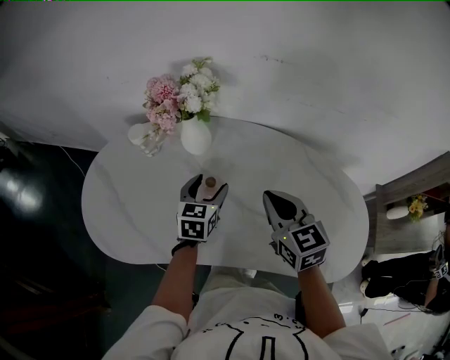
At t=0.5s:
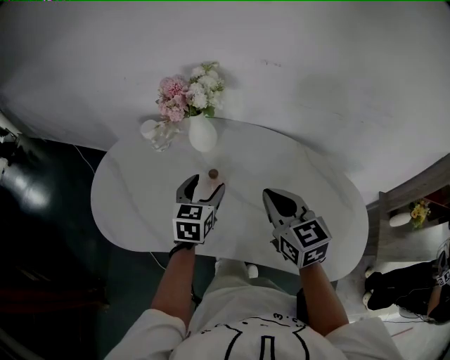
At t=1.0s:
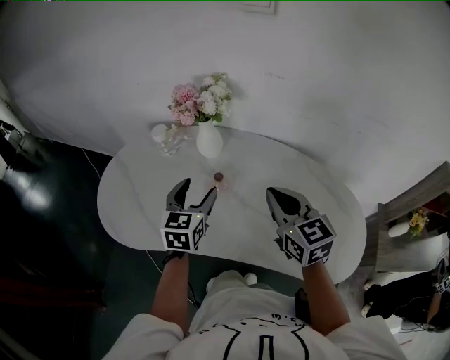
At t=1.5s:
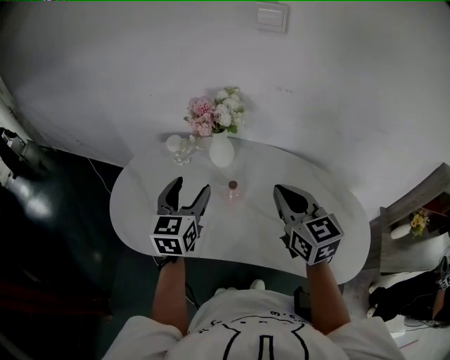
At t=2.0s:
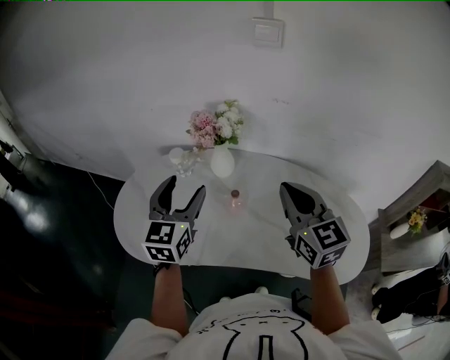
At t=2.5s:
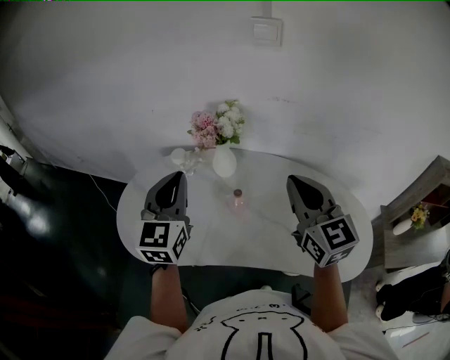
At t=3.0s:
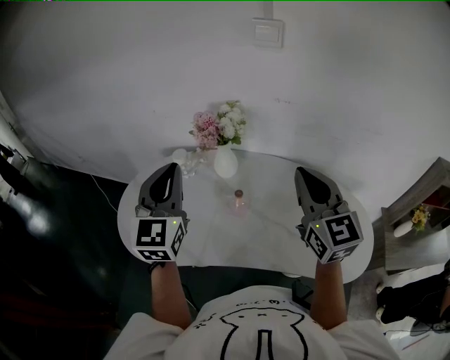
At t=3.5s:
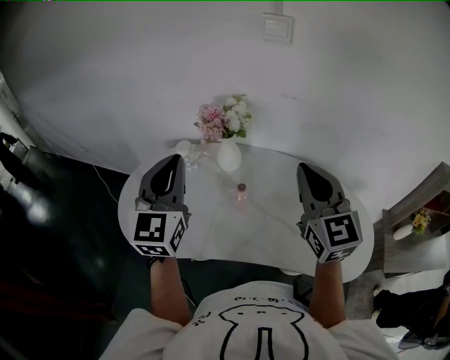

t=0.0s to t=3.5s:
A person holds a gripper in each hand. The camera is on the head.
t=0.0s to t=2.0s: The right gripper is displaced upward by about 15 cm. Meanwhile the left gripper heads upward and to the left, covering some 30 cm, and changes its angle by some 30 degrees.
t=2.0s to t=3.5s: The left gripper is displaced upward by some 10 cm, and closes.

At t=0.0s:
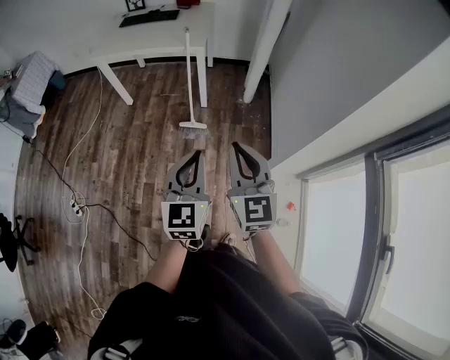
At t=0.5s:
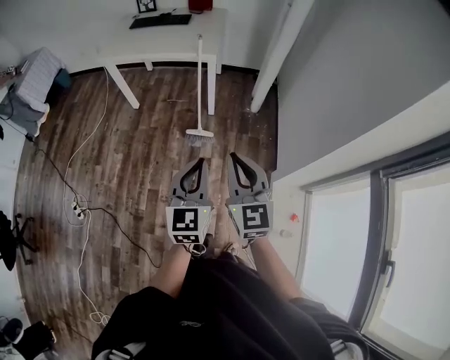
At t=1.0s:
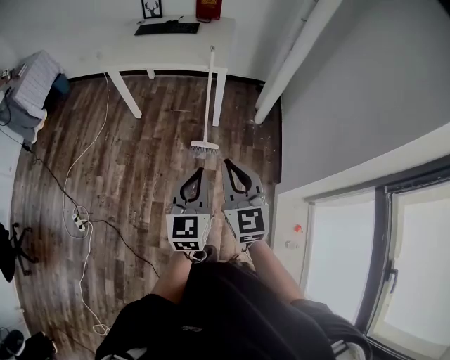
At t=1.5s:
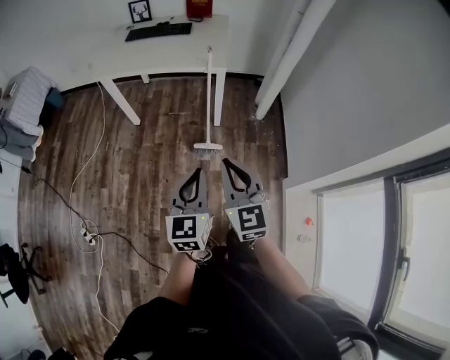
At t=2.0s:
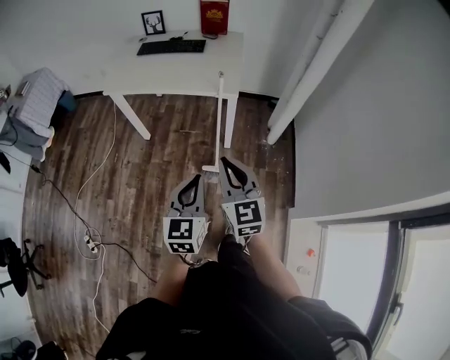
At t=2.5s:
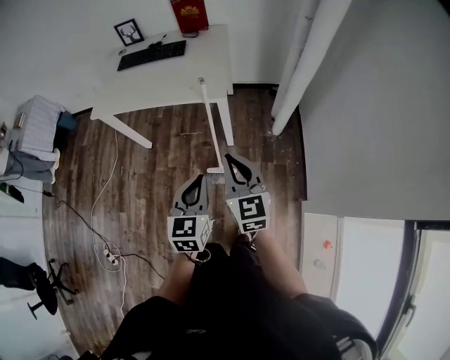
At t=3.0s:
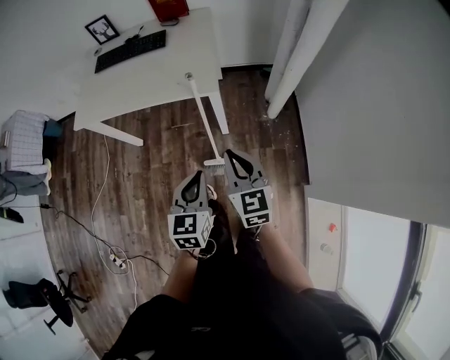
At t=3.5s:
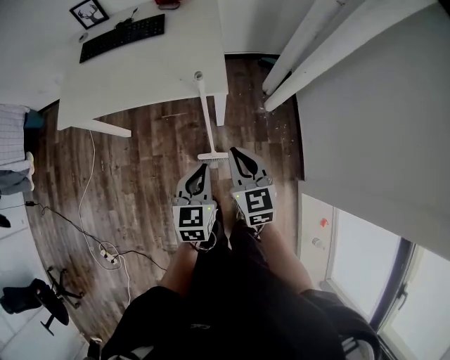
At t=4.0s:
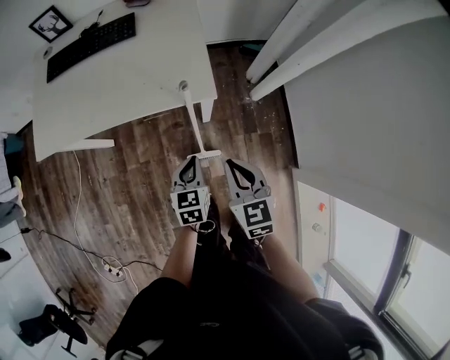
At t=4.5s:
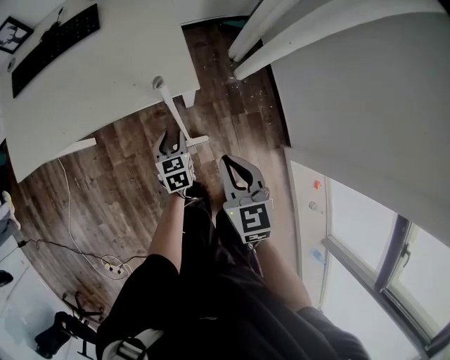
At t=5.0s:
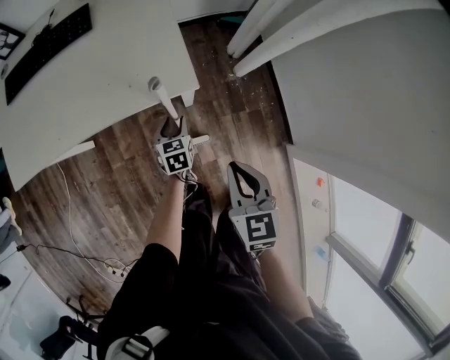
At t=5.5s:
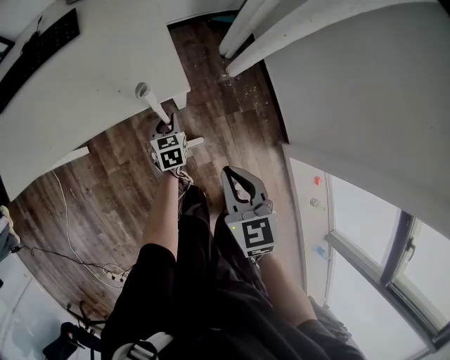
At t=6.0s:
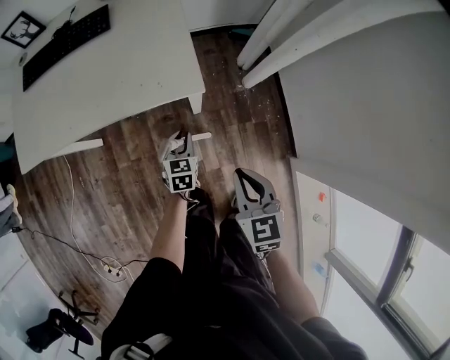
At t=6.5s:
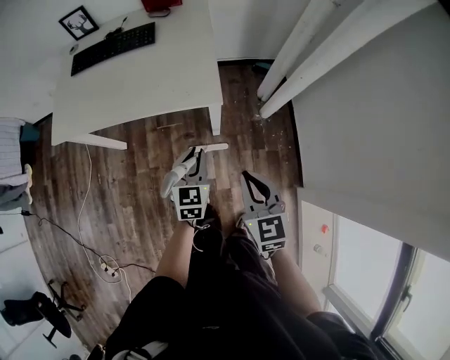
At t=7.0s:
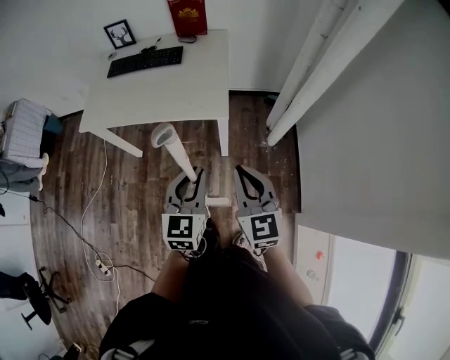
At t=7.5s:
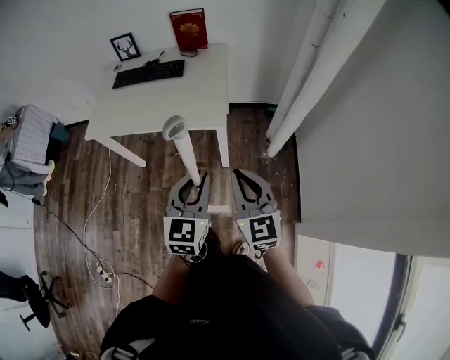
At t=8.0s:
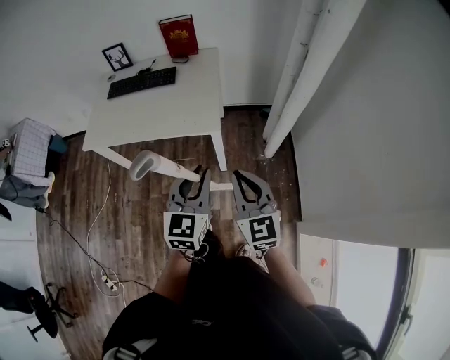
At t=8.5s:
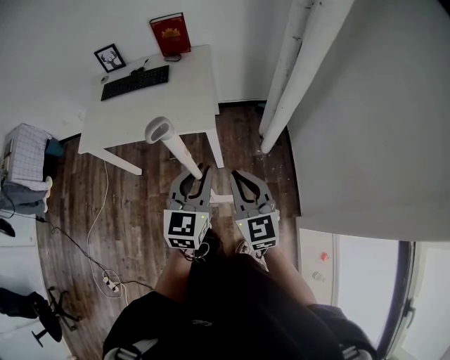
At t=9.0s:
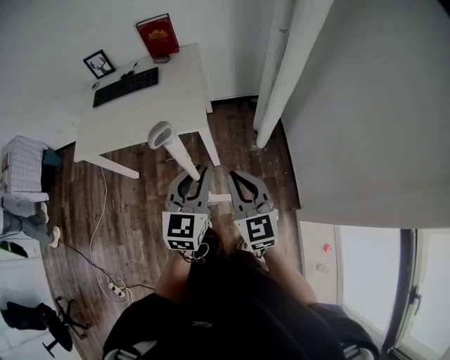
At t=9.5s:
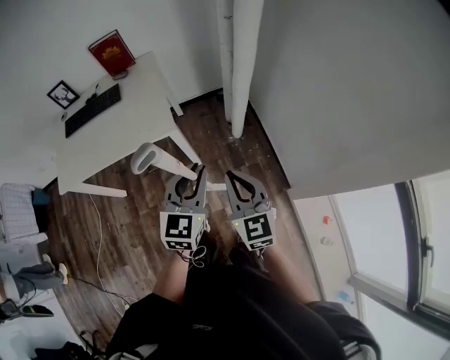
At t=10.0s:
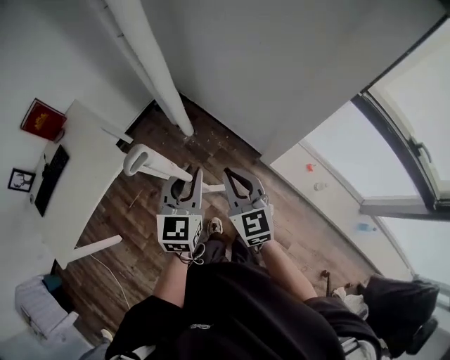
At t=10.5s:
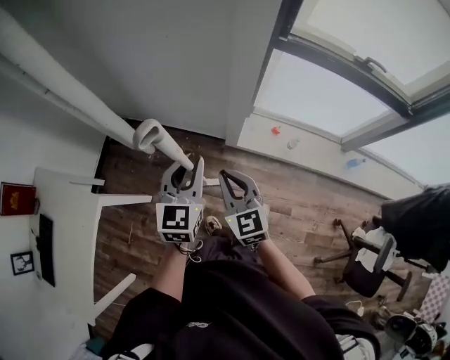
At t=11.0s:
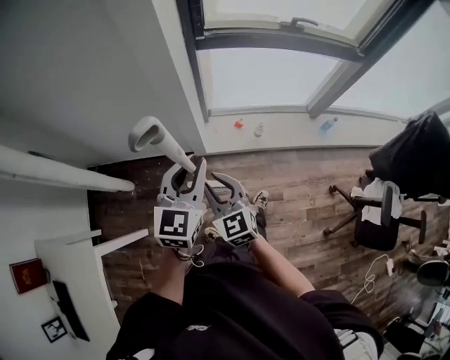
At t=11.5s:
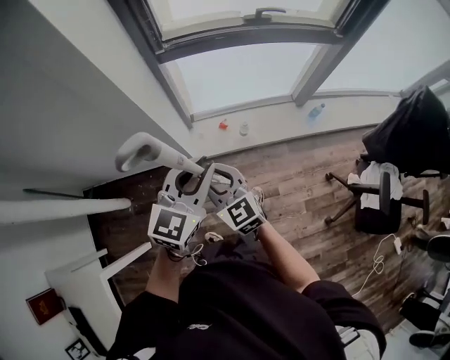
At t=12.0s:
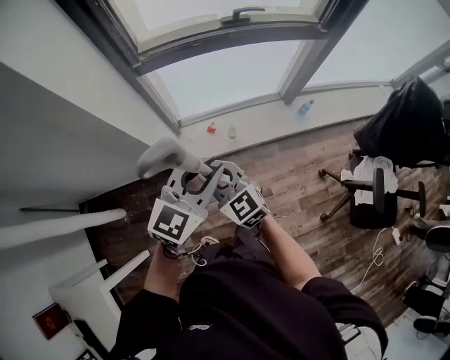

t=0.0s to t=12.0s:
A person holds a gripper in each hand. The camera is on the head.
t=0.0s to t=2.0s: Both grippers move forward and to the left, some 30 cm.
t=2.0s to t=4.0s: The two grippers go about 35 cm forward and downward. The right gripper rotates approximately 30 degrees, while the left gripper swivels some 30 degrees.
t=4.0s to t=6.0s: The right gripper shifts by roughly 5 cm, while the left gripper travels downward and forward by some 15 cm, and opens, then closes once more.
t=6.0s to t=8.0s: The left gripper travels upward and backward by roughly 40 cm, and points its fingers about 30 degrees further upward; the right gripper travels upward by about 20 cm, and turns by approximately 30 degrees.
t=8.0s to t=10.0s: The right gripper shifts by approximately 20 cm, and rotates about 40 degrees. The left gripper moves some 20 cm, and swivels about 50 degrees.
t=10.0s to t=12.0s: The right gripper shifts by roughly 35 cm, and rotates about 30 degrees, while the left gripper shifts by roughly 50 cm, and changes its angle by roughly 80 degrees.

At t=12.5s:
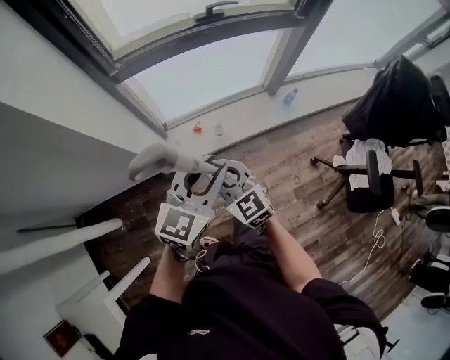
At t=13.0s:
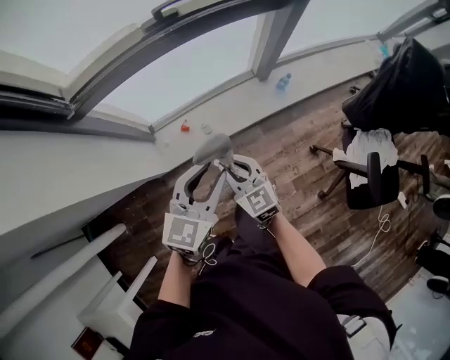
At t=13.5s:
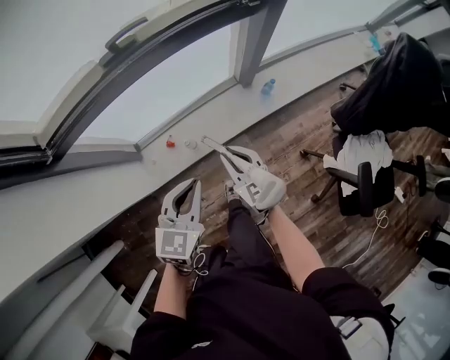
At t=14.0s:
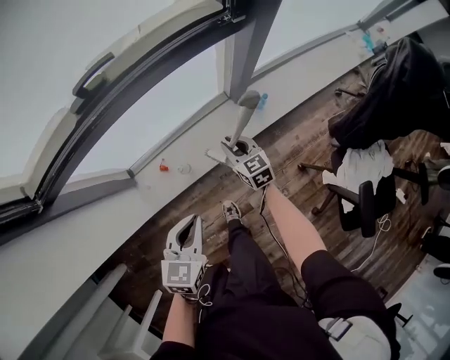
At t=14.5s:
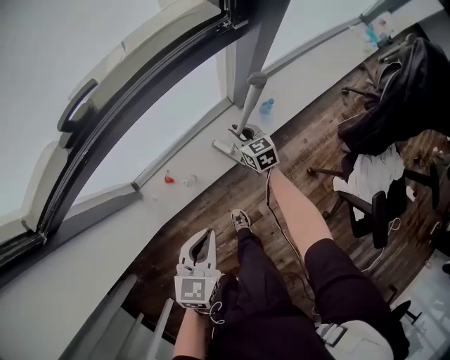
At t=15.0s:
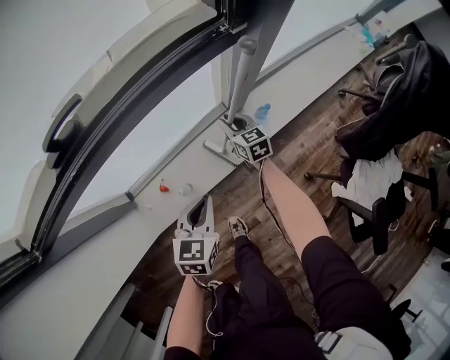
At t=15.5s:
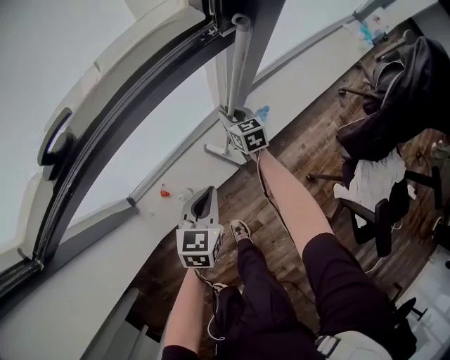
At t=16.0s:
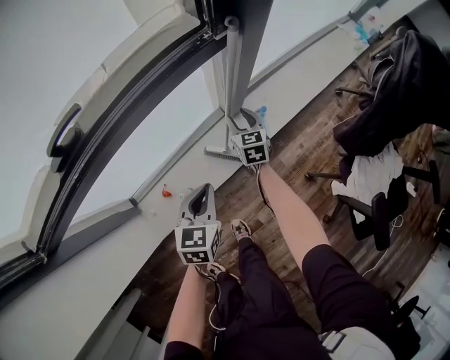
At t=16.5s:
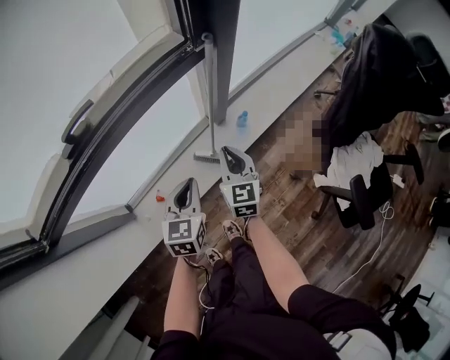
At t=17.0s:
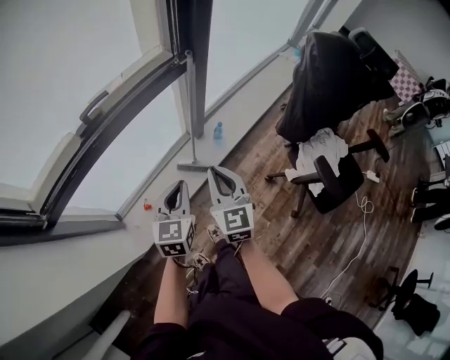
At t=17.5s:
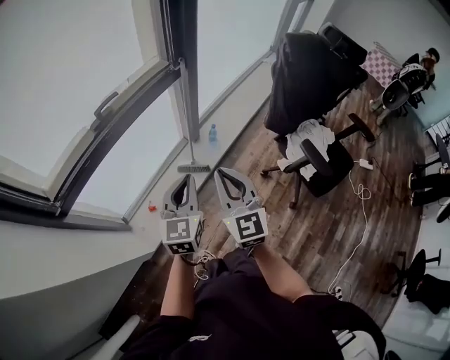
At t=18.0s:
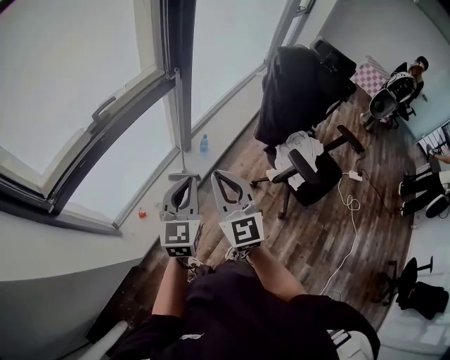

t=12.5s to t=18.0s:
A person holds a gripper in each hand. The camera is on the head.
t=12.5s to t=14.5s: The right gripper travels forward, to the right and downward by approximately 70 cm, and changes its angle by roughly 40 degrees; the left gripper heads forward, downward and to the right, covering approximately 35 cm, rotates approximately 30 degrees, and closes up.
t=14.5s to t=16.0s: The right gripper goes some 10 cm forward and to the right, turns by about 20 degrees, and opens. The left gripper goes approximately 15 cm forward and downward.
t=16.0s to t=18.0s: The left gripper travels upward and backward by about 40 cm, and swivels roughly 30 degrees; the right gripper moves upward and backward, some 70 cm, turns by approximately 40 degrees, and closes.

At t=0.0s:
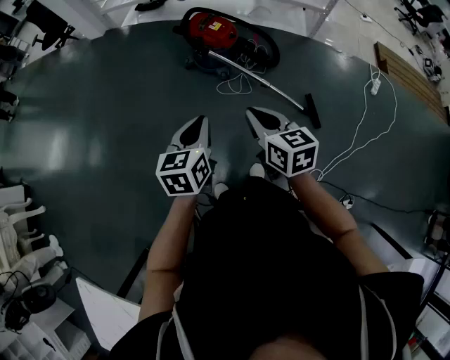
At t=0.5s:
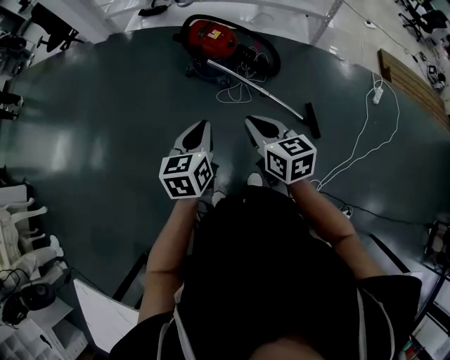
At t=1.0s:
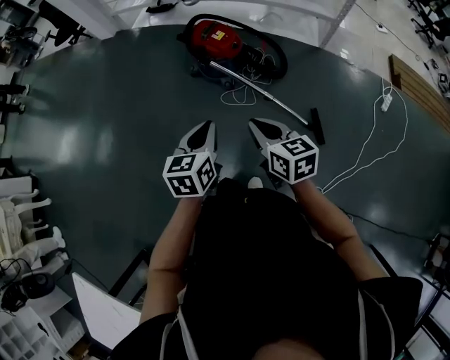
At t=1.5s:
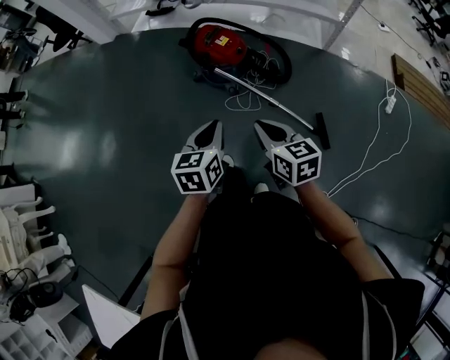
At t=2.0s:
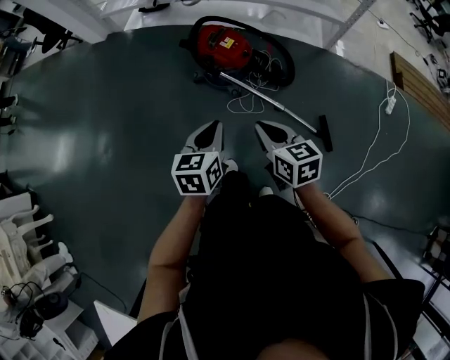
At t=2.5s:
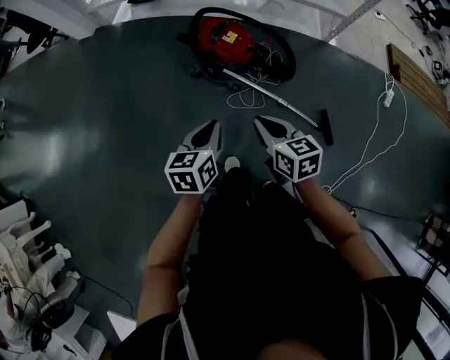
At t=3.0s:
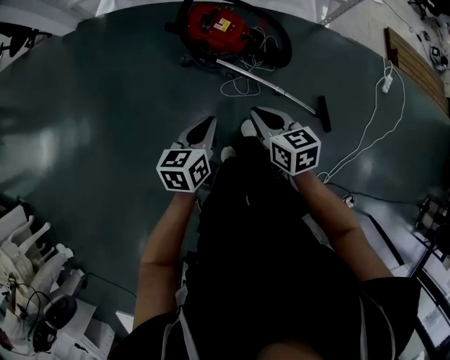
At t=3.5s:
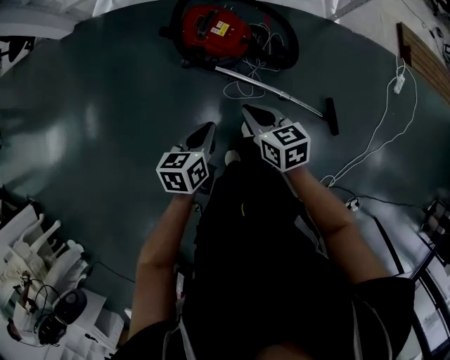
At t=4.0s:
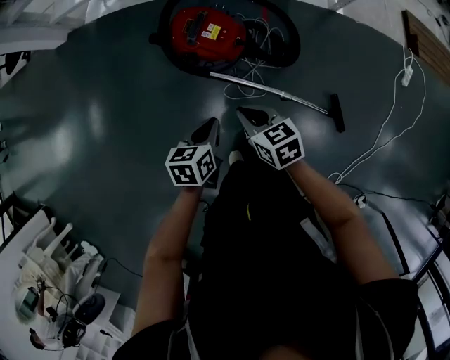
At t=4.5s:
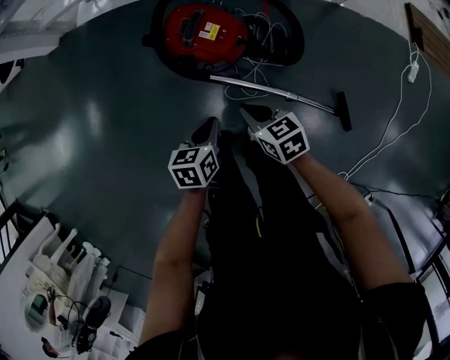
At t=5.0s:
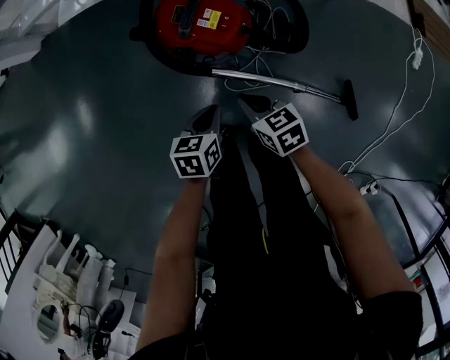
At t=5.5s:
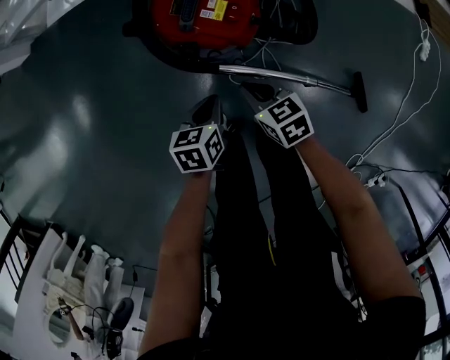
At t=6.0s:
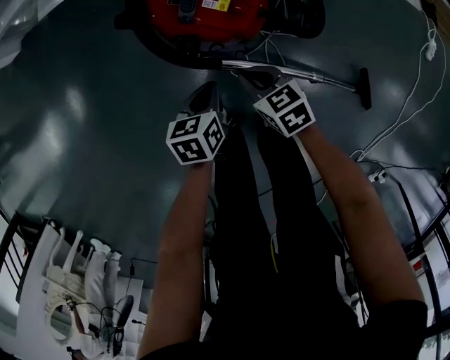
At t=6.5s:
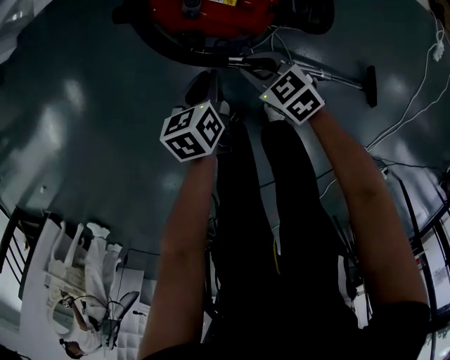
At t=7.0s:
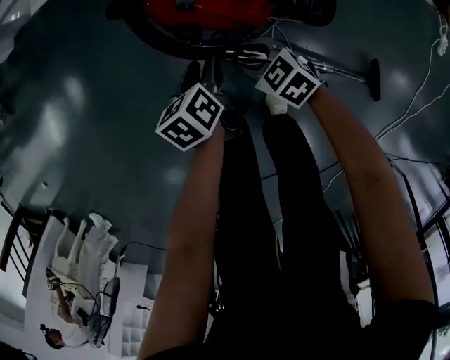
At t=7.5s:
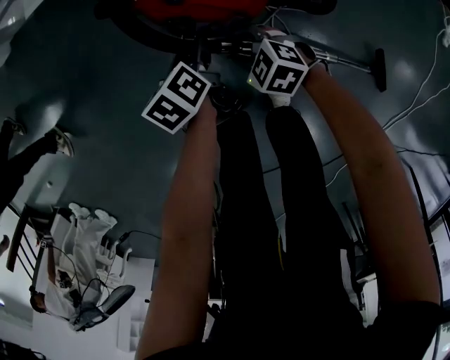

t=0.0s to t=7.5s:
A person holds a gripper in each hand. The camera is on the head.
t=0.0s to t=2.0s: The two grippers go about 20 cm forward.
t=2.0s to t=4.0s: Both grippers move forward and downward, some 25 cm. The left gripper turns by approximately 20 degrees.
t=4.0s to t=5.5s: The two grippers go roughly 20 cm downward and forward.
t=5.5s to t=7.5s: The right gripper heads downward, covering approximately 10 cm, turns by about 40 degrees, and opens up; the left gripper is displaced forward and downward by roughly 10 cm, turns by roughly 30 degrees, and opens.
